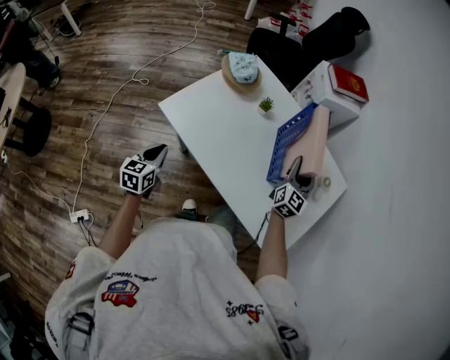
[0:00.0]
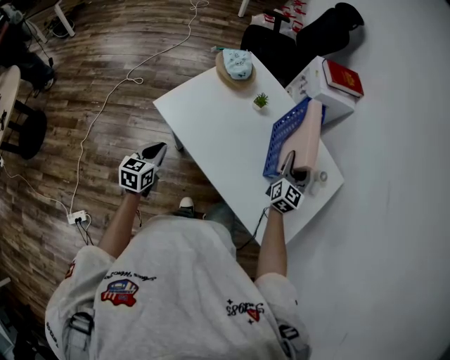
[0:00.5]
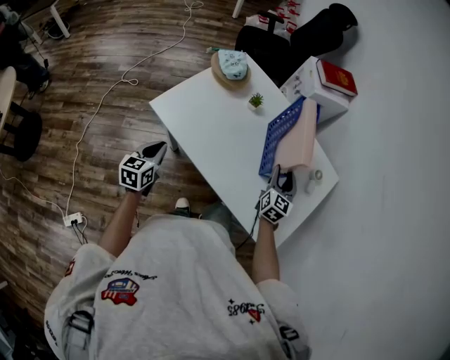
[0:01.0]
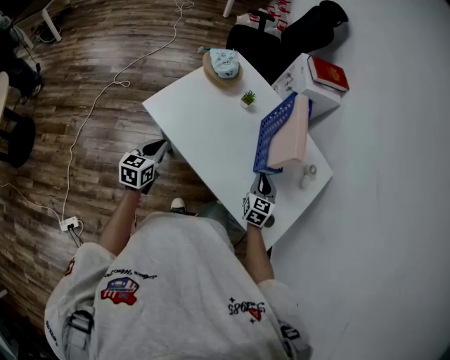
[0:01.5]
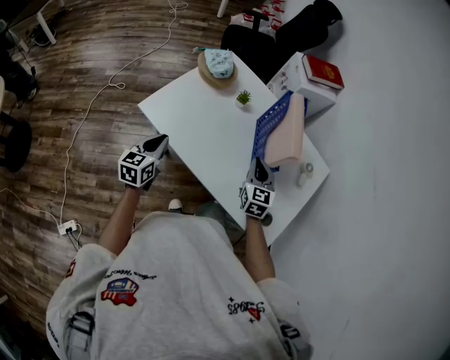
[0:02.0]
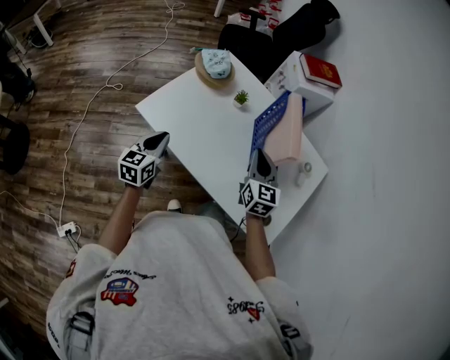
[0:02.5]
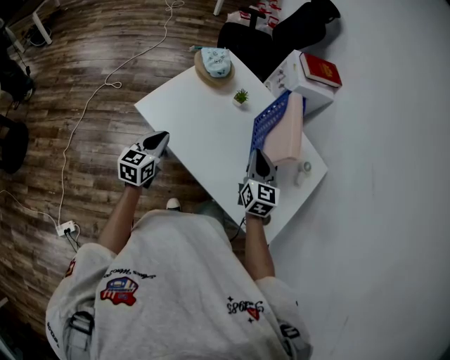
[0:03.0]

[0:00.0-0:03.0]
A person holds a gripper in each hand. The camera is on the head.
0:00.0 to 0:01.5: The right gripper shifts about 15 cm downward and backward, turns by about 30 degrees, and closes its fingers.
0:01.5 to 0:03.0: The right gripper moves upward and to the left, approximately 15 cm. Meanwhile the left gripper moves about 5 cm.

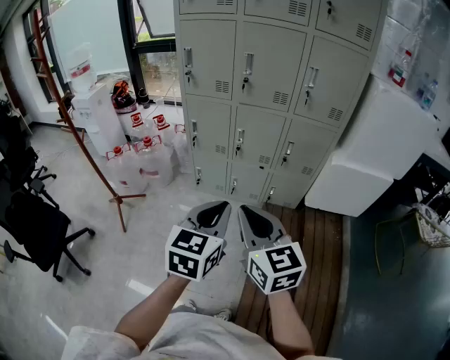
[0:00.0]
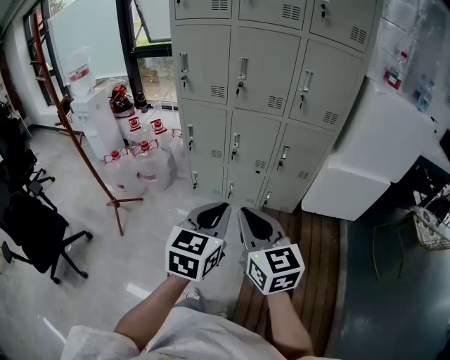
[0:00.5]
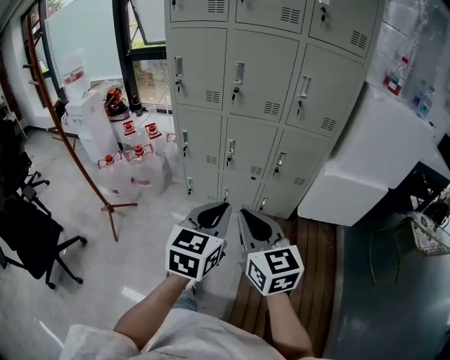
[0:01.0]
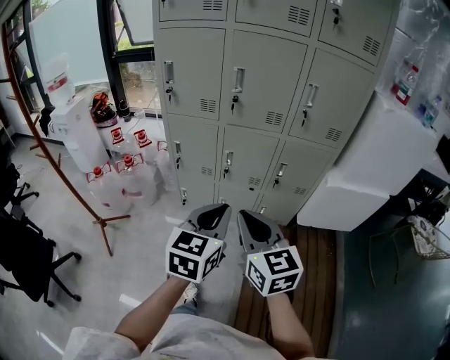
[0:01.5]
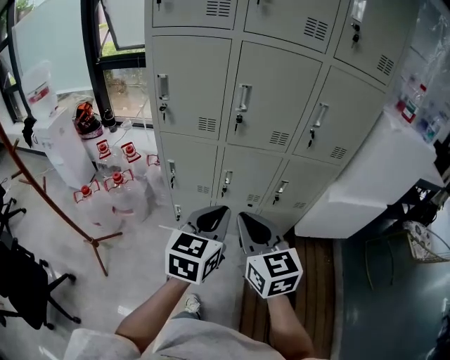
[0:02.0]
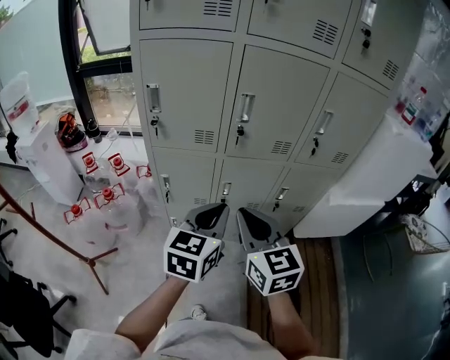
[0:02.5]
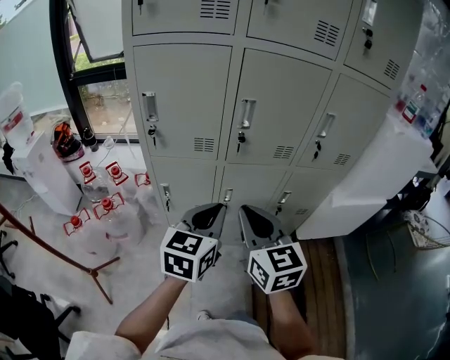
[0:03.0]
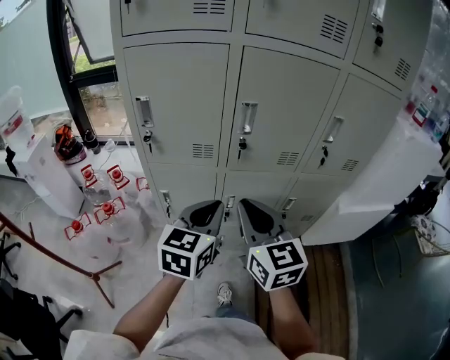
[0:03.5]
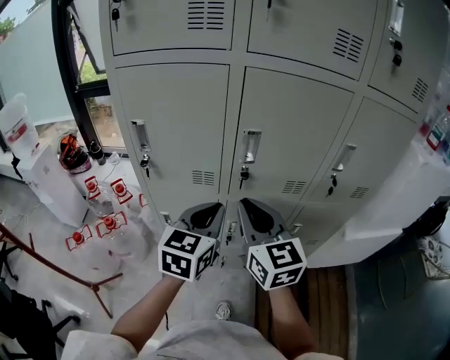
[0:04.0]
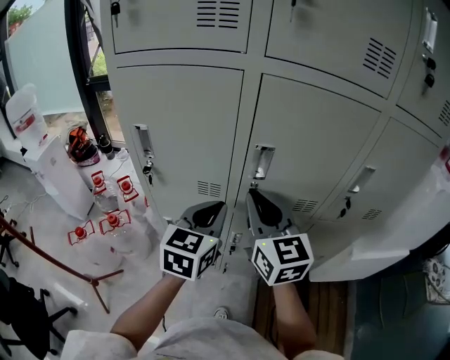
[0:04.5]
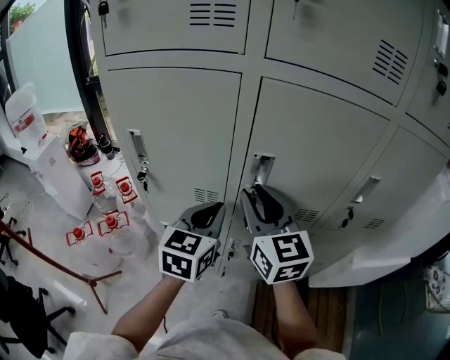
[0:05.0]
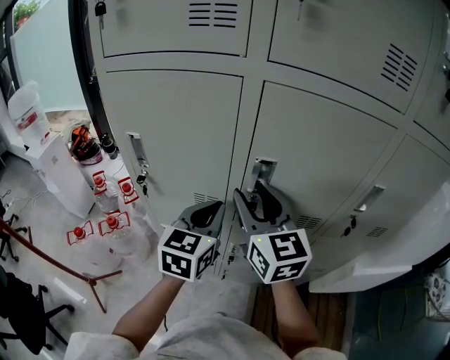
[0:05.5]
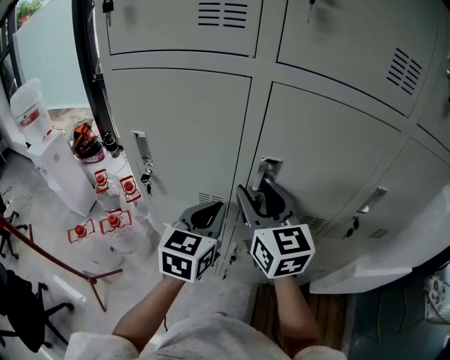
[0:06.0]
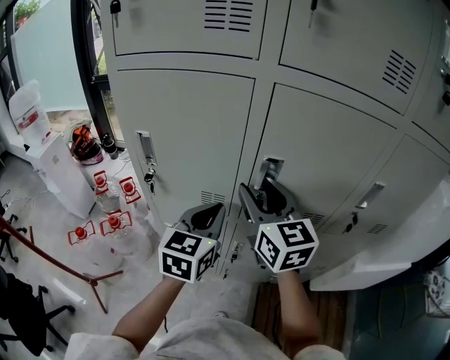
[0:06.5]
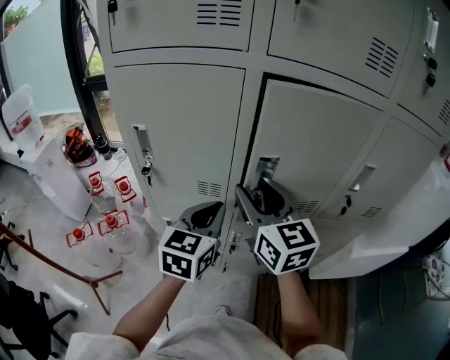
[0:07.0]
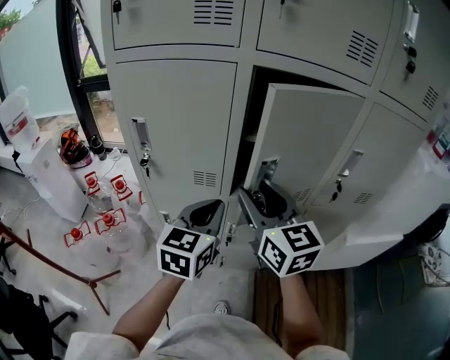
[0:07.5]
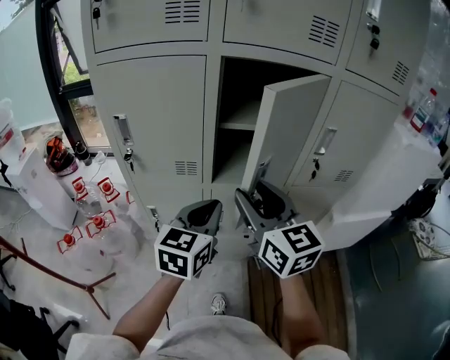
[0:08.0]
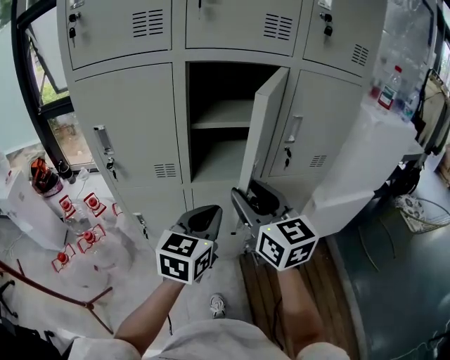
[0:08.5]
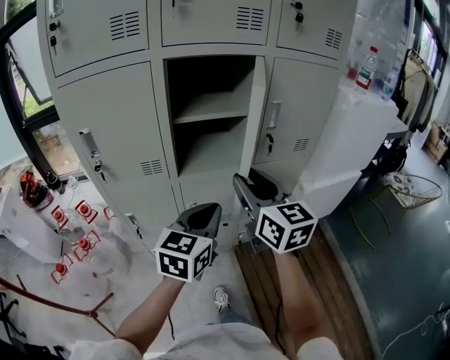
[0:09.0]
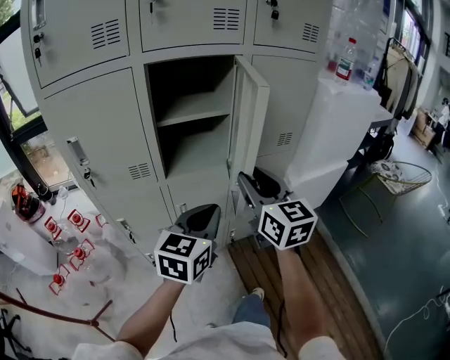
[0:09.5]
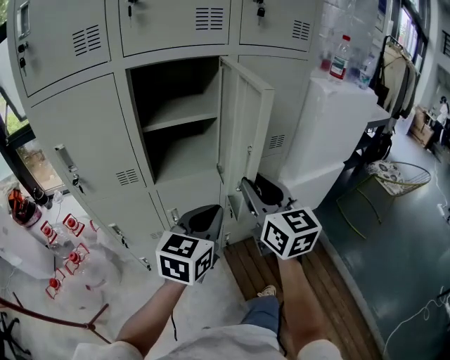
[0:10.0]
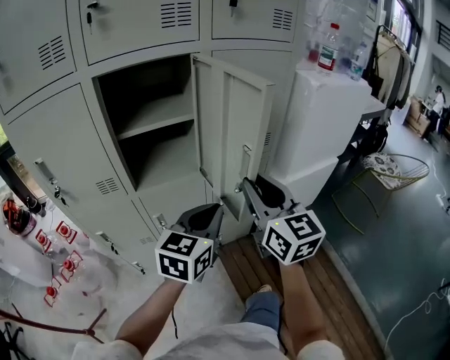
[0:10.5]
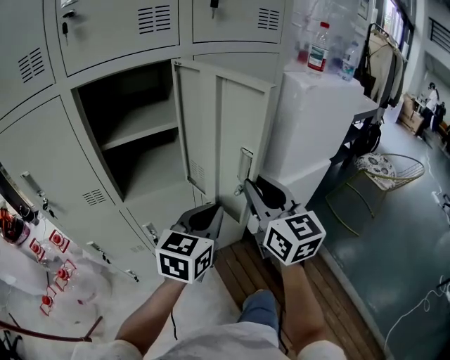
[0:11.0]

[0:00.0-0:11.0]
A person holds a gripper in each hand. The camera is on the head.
0:00.0 to 0:02.0: Both grippers move forward, about 25 cm.
0:02.0 to 0:03.5: Both grippers travel together forward, some 15 cm.
0:03.5 to 0:05.5: Both grippers move forward, roughly 20 cm. The right gripper opens up.
0:05.5 to 0:07.5: The grippers both shift backward by approximately 10 cm.
0:07.5 to 0:09.0: The grippers both shift to the right and backward by about 15 cm. The left gripper rotates about 20 degrees.
0:09.0 to 0:11.0: The right gripper is displaced to the right by approximately 20 cm, while the left gripper heads to the right and forward, covering approximately 20 cm.

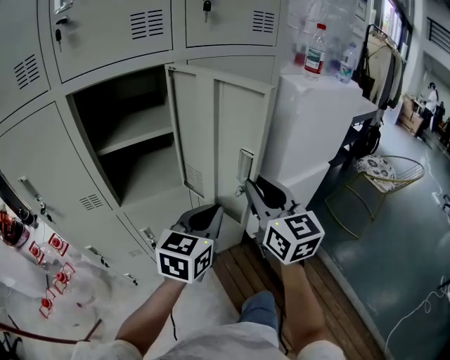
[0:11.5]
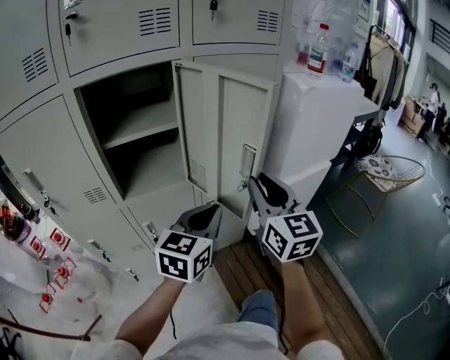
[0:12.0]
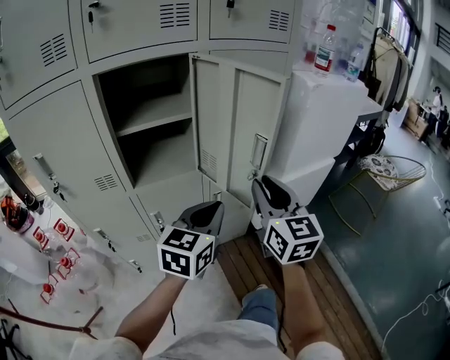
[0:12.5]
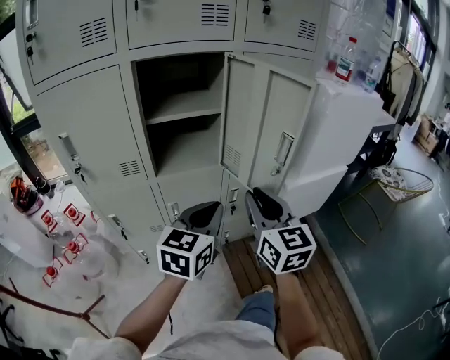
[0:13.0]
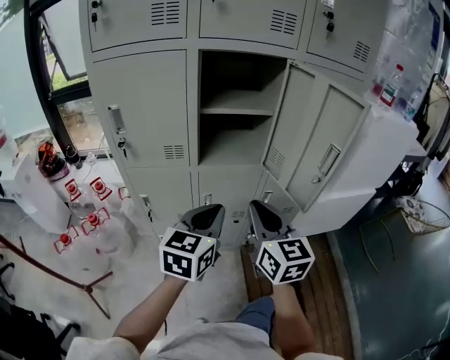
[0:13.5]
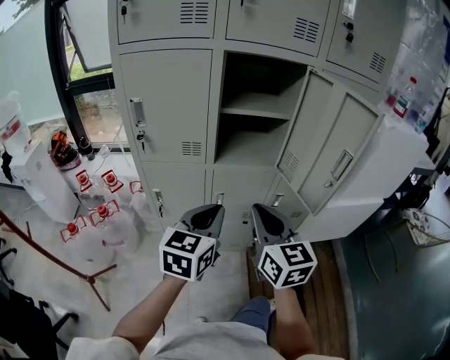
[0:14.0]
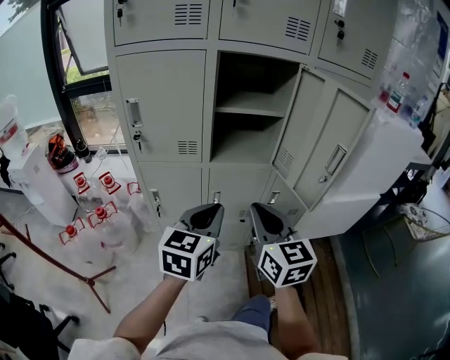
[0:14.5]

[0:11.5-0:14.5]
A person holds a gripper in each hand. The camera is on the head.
0:11.5 to 0:13.0: The right gripper heads backward and to the left, covering approximately 15 cm, while the left gripper goes roughly 15 cm to the left and backward.
0:13.0 to 0:14.5: Both grippers travel together to the left and backward, approximately 15 cm.

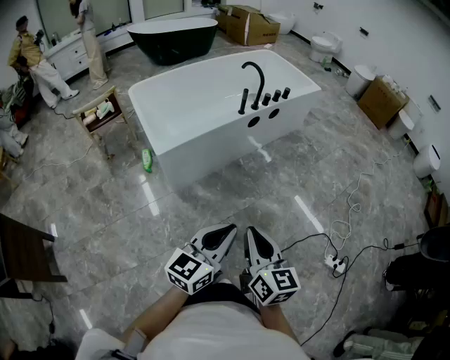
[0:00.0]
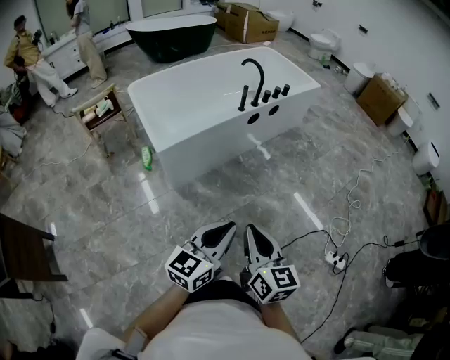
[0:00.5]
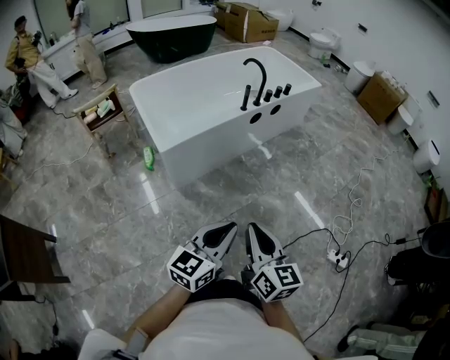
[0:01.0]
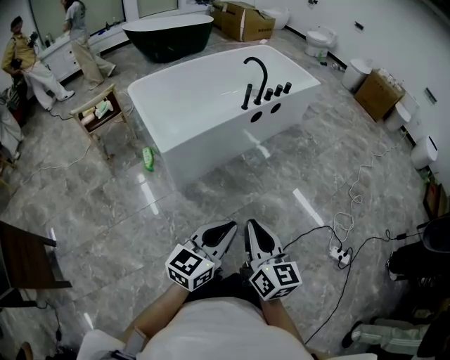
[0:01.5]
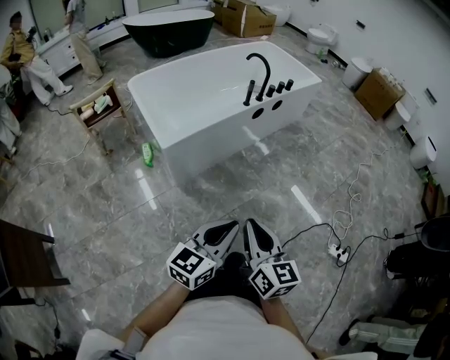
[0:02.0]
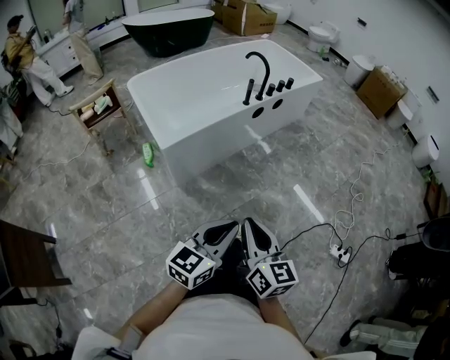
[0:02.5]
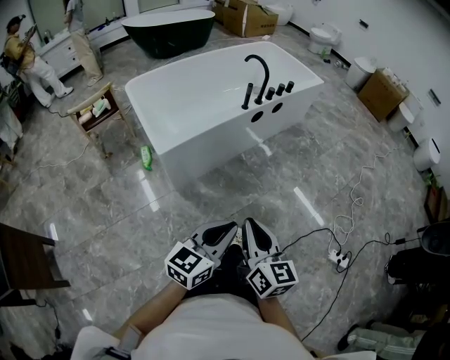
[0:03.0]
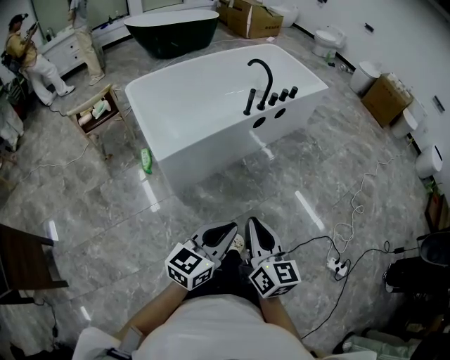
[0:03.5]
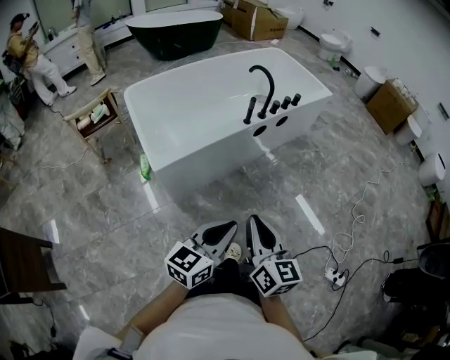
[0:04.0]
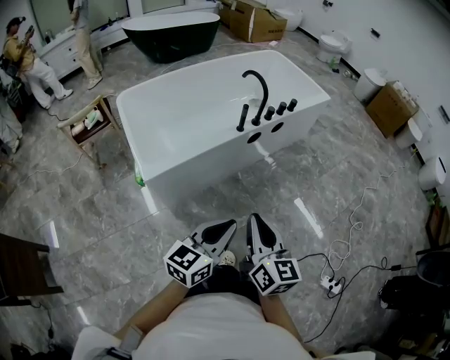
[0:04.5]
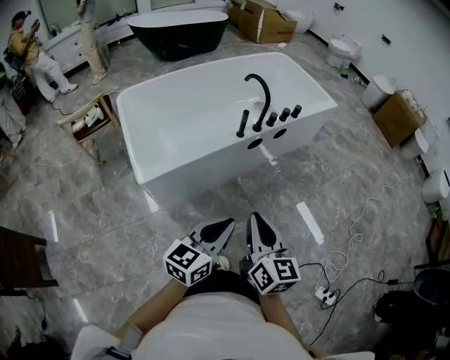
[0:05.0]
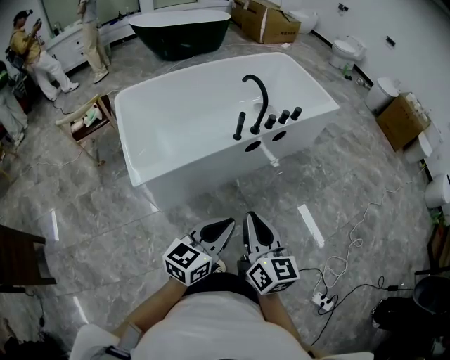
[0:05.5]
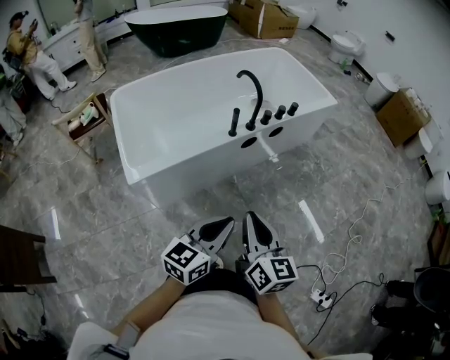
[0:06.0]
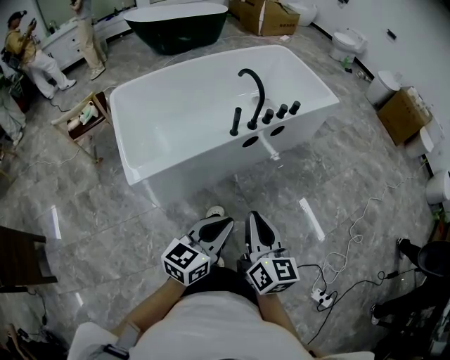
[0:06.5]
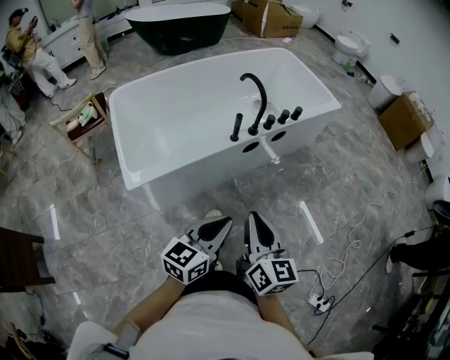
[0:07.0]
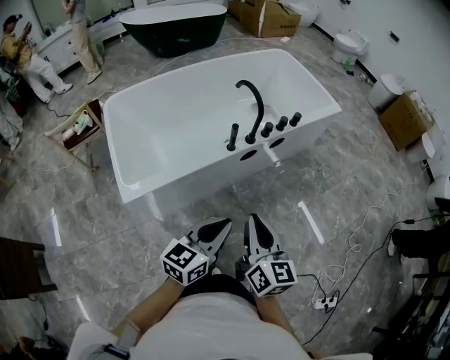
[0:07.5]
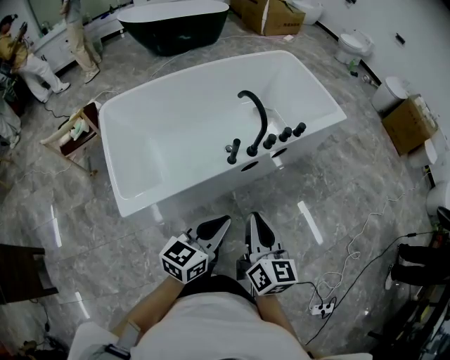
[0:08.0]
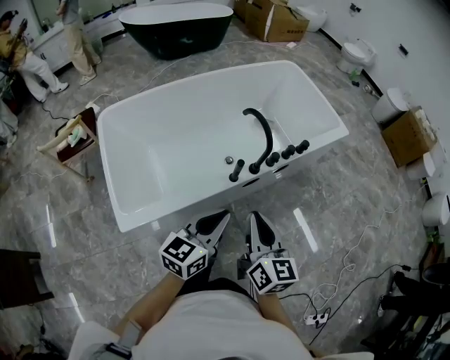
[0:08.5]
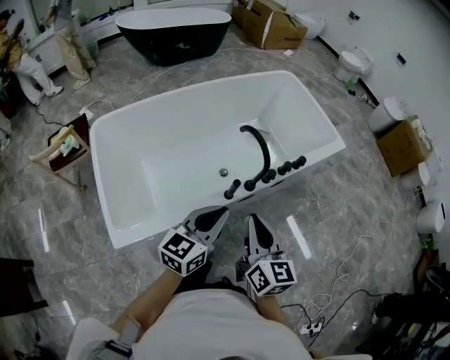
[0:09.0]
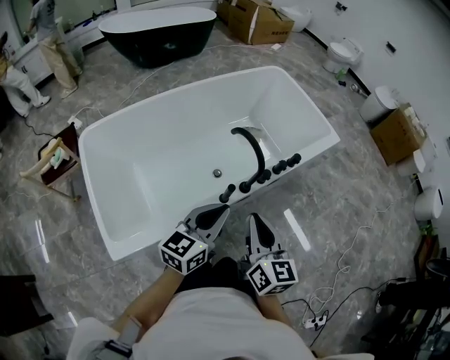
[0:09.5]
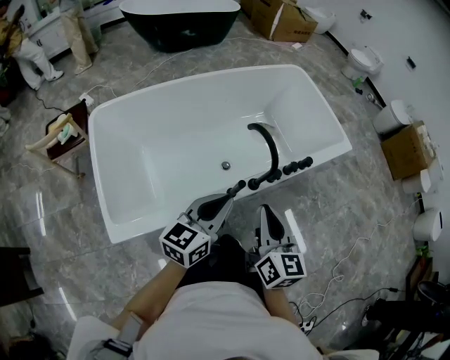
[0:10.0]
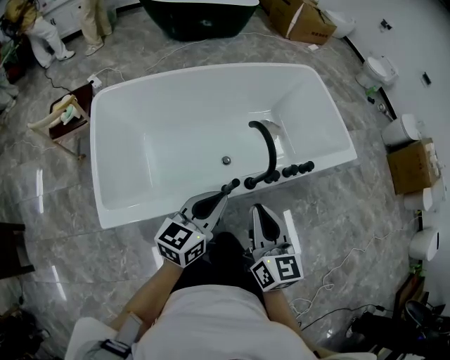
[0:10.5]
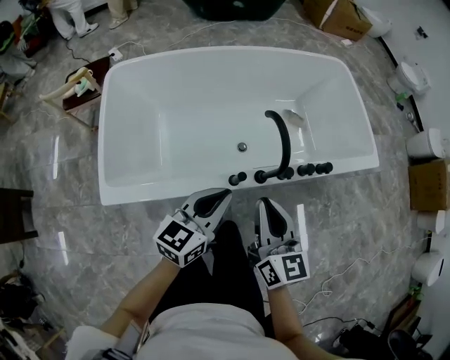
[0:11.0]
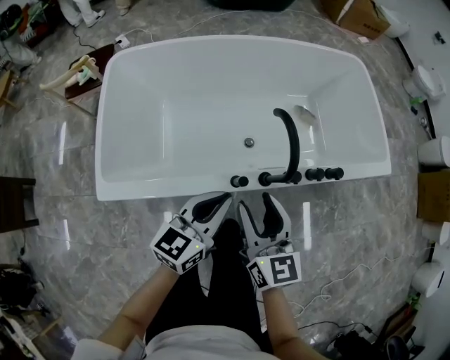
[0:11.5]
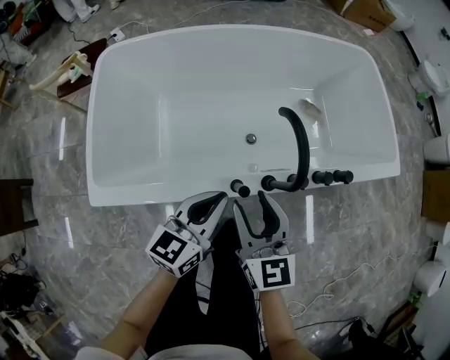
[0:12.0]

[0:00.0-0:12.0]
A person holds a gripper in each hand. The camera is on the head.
0:00.0 to 0:02.0: The two grippers go roughly 5 cm to the left.
0:02.0 to 0:04.0: The two grippers go about 15 cm forward.
0:04.0 to 0:06.0: The grippers both shift forward and to the right by about 20 cm.
0:06.0 to 0:08.0: The grippers both shift forward by some 20 cm.
0:08.0 to 0:10.0: Both grippers travel together forward, roughly 20 cm.
0:10.0 to 0:12.0: Both grippers move downward and forward, some 15 cm. The right gripper turns by approximately 30 degrees, and opens.
